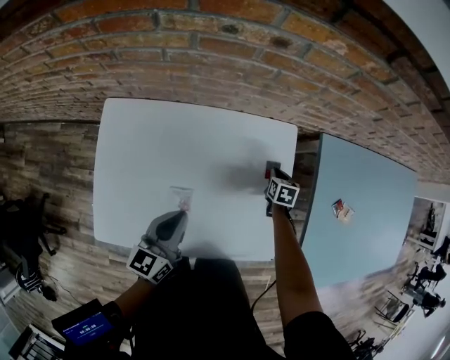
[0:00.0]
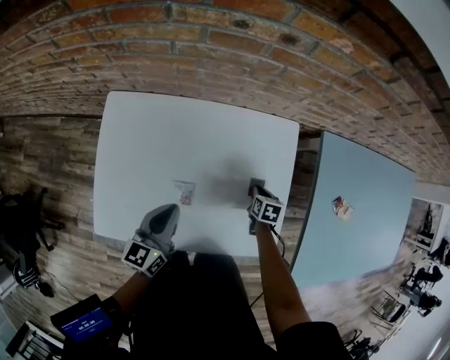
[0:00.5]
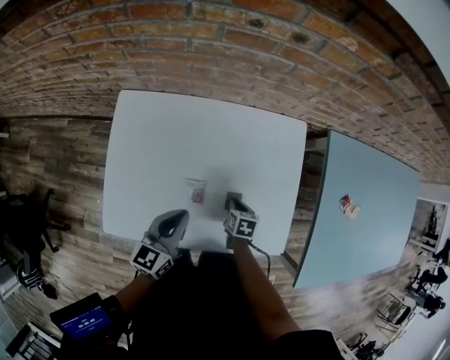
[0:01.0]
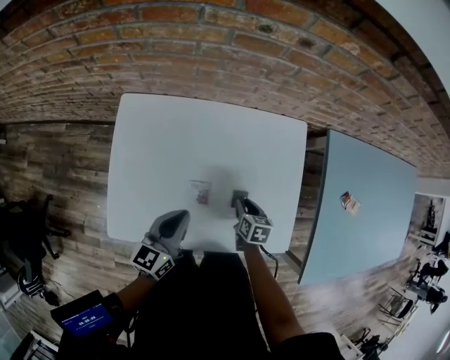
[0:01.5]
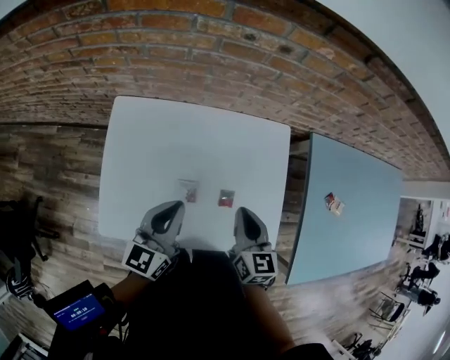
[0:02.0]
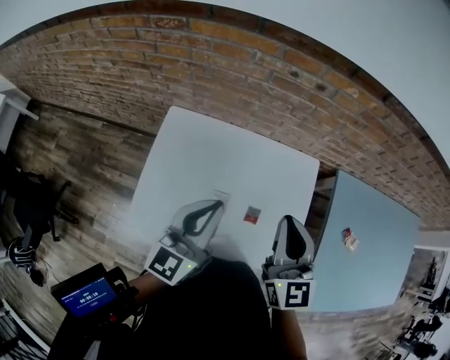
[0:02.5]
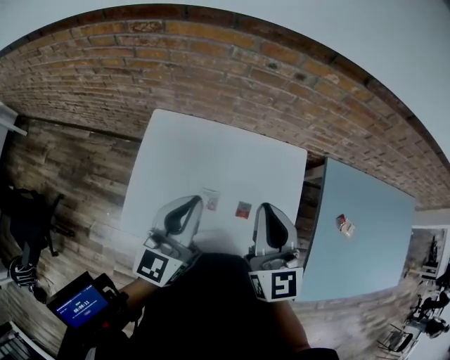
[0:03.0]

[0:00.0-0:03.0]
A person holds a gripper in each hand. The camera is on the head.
0:00.0 to 0:01.5: The right gripper goes some 25 cm backward and to the left. Meanwhile the left gripper heads to the left, covering roughly 5 cm.
0:01.5 to 0:03.0: The left gripper goes approximately 20 cm upward, and swivels approximately 30 degrees, while the right gripper shifts about 40 cm upward, tips its fingers upward by some 50 degrees, and closes up.

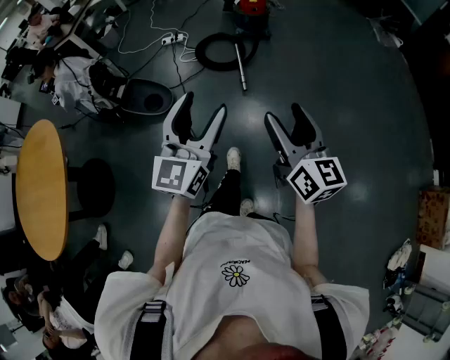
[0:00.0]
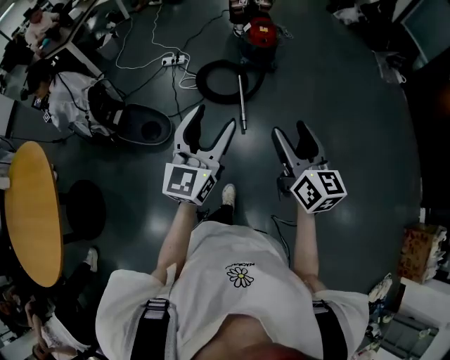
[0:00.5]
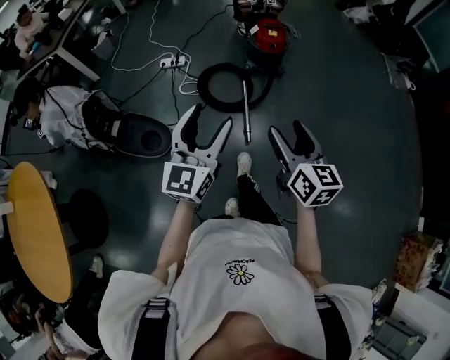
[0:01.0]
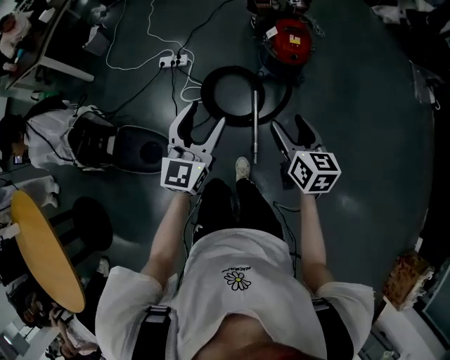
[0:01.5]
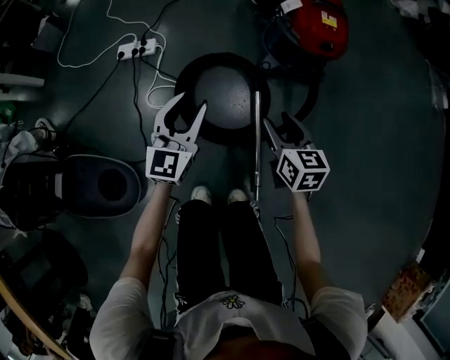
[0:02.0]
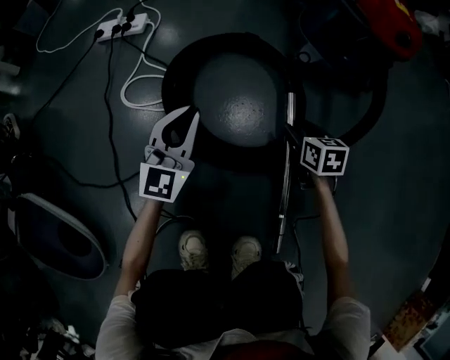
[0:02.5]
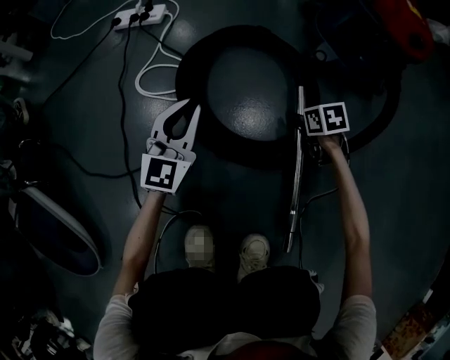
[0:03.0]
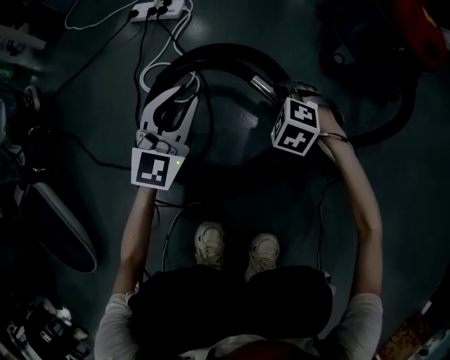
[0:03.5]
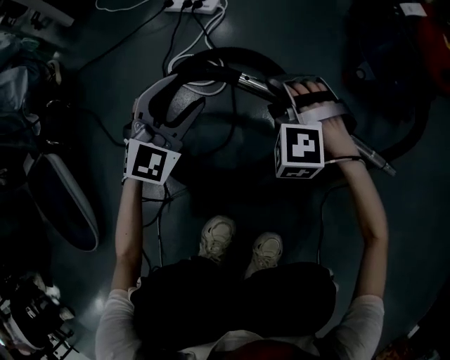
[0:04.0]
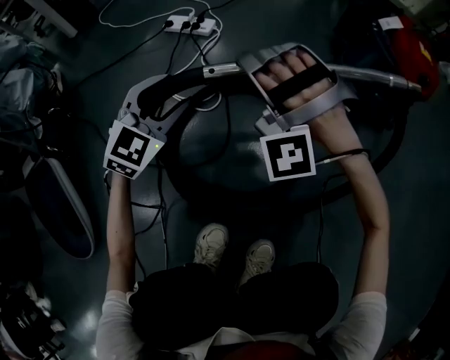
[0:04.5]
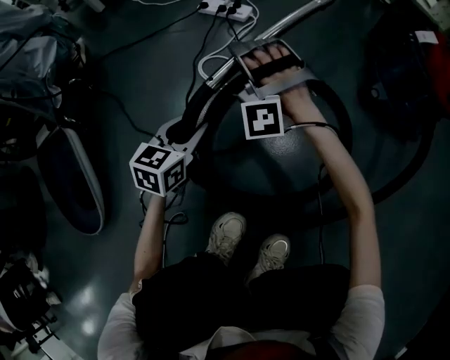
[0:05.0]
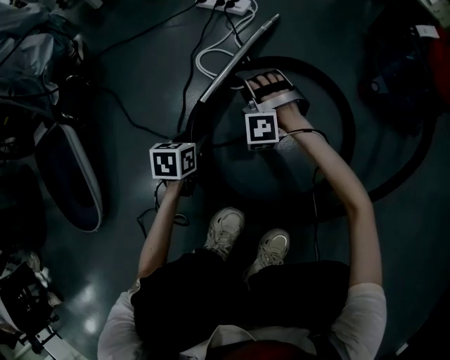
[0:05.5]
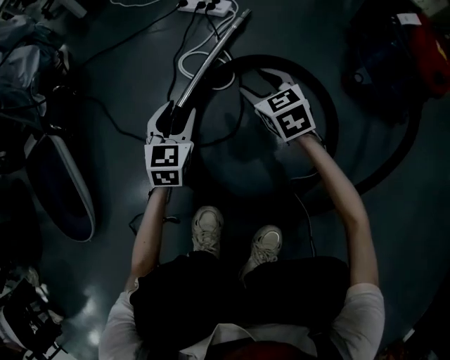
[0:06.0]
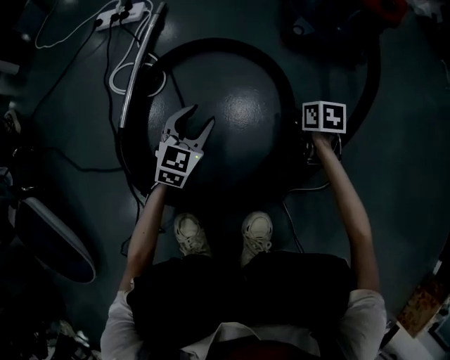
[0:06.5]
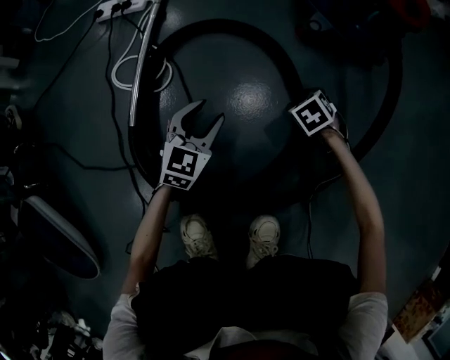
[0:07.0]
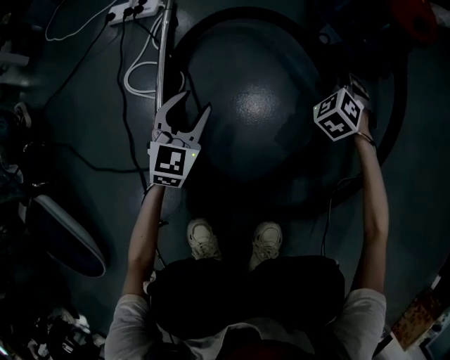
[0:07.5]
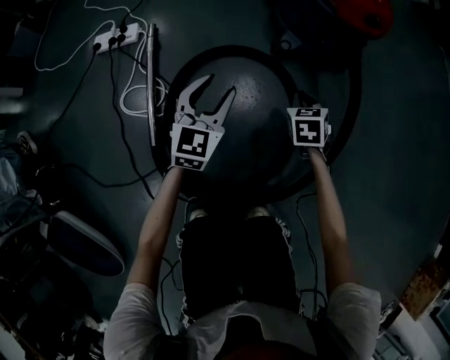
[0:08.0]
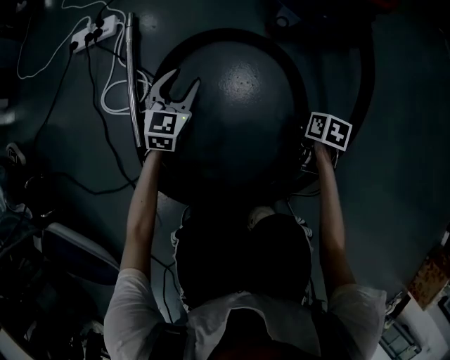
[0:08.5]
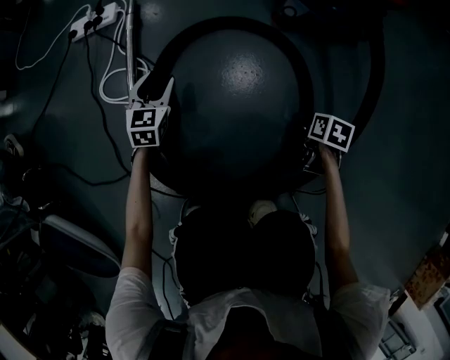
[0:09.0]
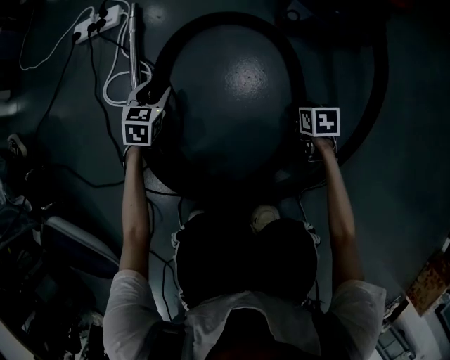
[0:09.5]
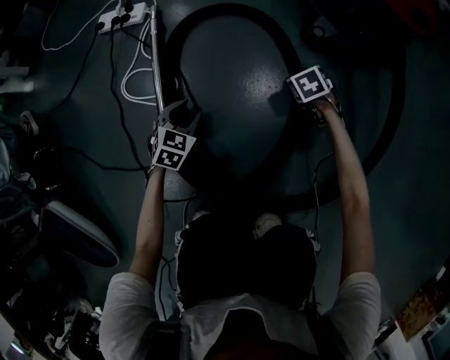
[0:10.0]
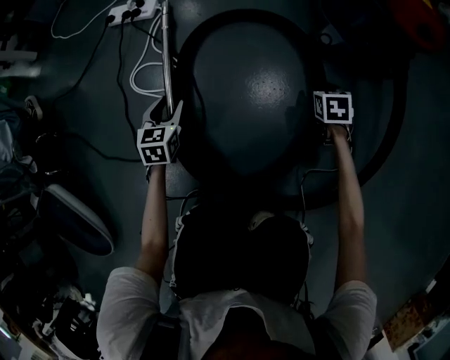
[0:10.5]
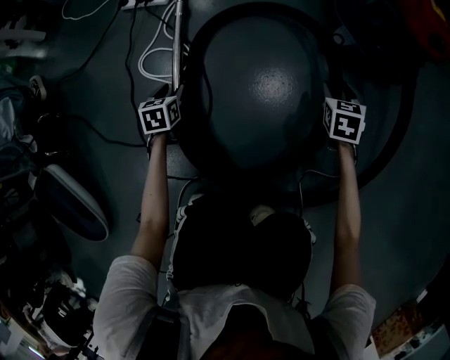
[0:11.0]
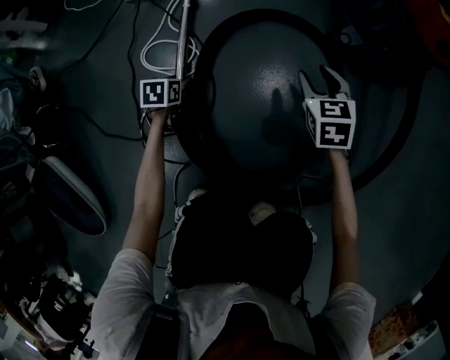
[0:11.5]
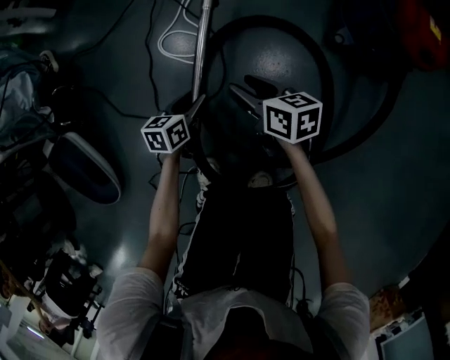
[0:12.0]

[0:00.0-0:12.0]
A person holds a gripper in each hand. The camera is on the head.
0:00.0 to 0:02.0: The two grippers travel together, forward, some 90 cm. The grippers both shift downward by roughly 60 cm. The right gripper points its fingers roughly 30 degrees further downward.
0:02.0 to 0:04.0: The two grippers go roughly 30 cm downward and to the left. The left gripper changes its angle by some 40 degrees, and closes and opens again, while the right gripper twists some 110 degrees counterclockwise, seen from behind.
0:04.0 to 0:06.0: The left gripper heads to the left and downward, covering some 10 cm, and changes its angle by roughly 40 degrees; the right gripper moves up and down over roughly 20 cm, changing direction 2 times, and rotates around the line of its fingers by approximately 60 degrees, clockwise from behind.
0:06.0 to 0:08.0: The right gripper travels downward and back again, approximately 15 cm each way, changes its angle by approximately 50 degrees, and closes up; the left gripper ends up approximately 35 cm from where it was, and turns by approximately 40 degrees.
0:08.0 to 0:10.0: The right gripper moves downward, some 15 cm, rotates some 30 degrees, and opens up. Meanwhile the left gripper moves downward and to the left, some 25 cm, and points its fingers approximately 30 degrees further downward.
0:10.0 to 0:12.0: The right gripper ends up about 40 cm from where it was, and points its fingers some 40 degrees further upward. Meanwhile the left gripper swings up and down, some 15 cm each way, with 2 reversals, and rotates around the line of its fingers by approximately 50 degrees, counterclockwise from behind.

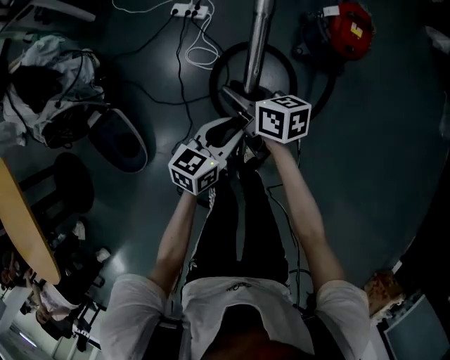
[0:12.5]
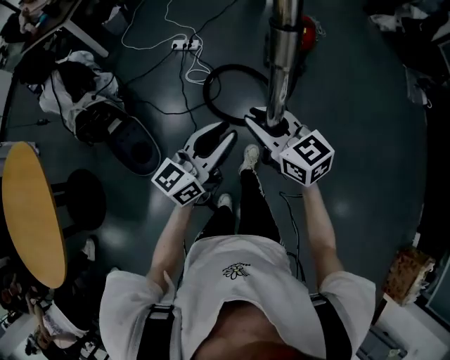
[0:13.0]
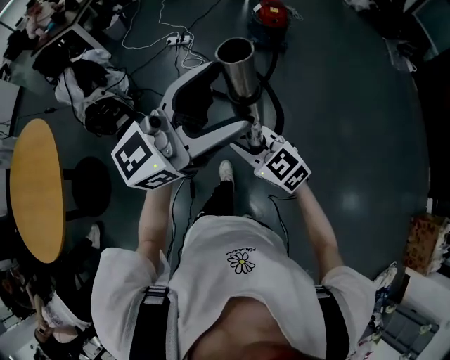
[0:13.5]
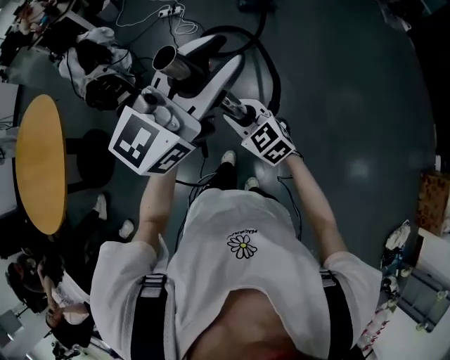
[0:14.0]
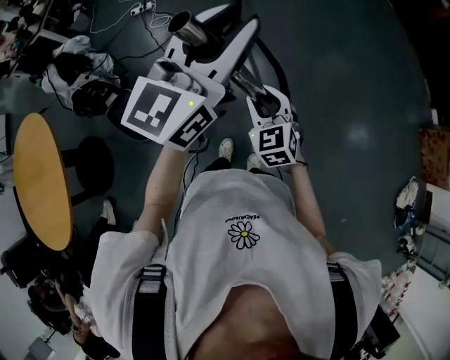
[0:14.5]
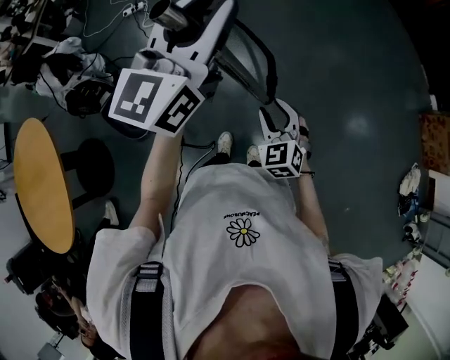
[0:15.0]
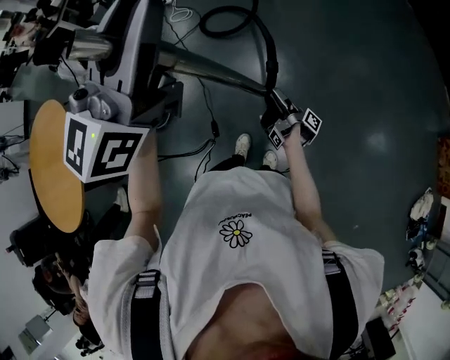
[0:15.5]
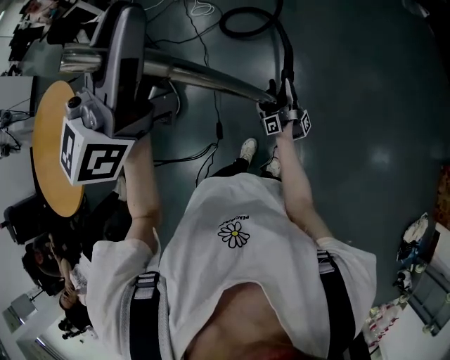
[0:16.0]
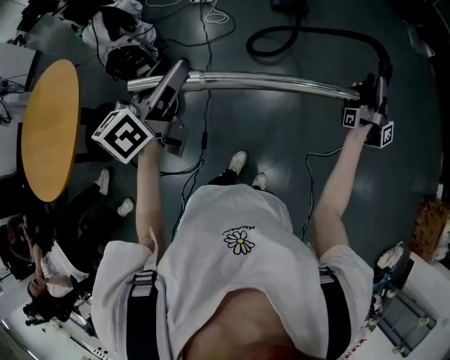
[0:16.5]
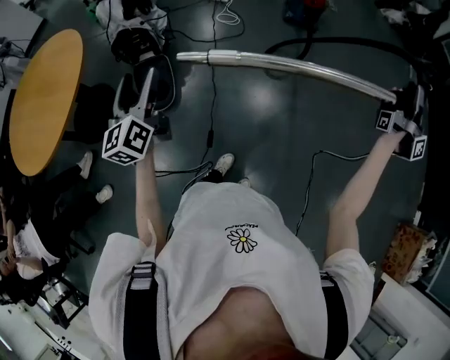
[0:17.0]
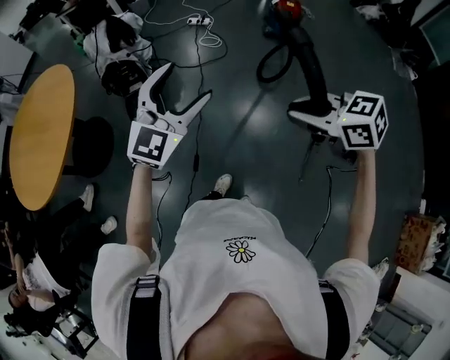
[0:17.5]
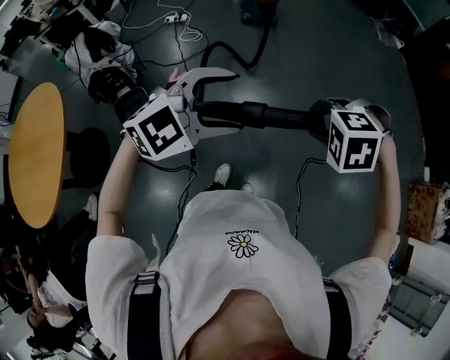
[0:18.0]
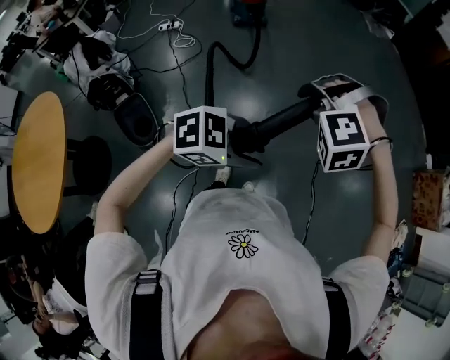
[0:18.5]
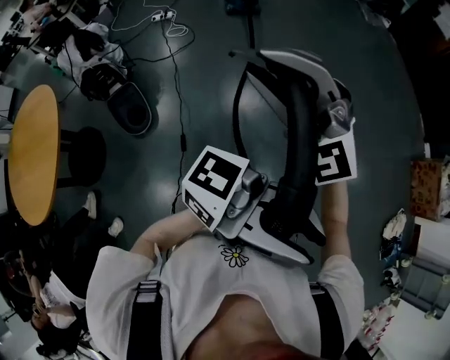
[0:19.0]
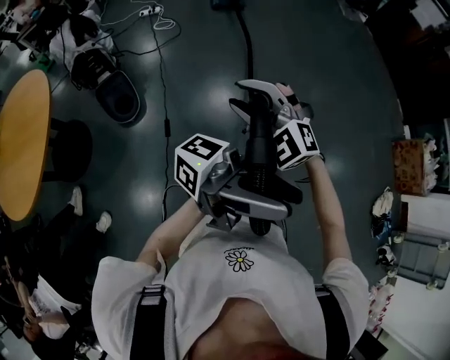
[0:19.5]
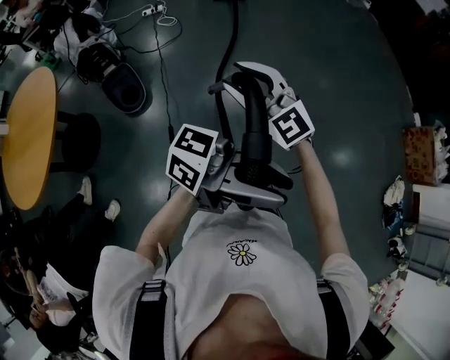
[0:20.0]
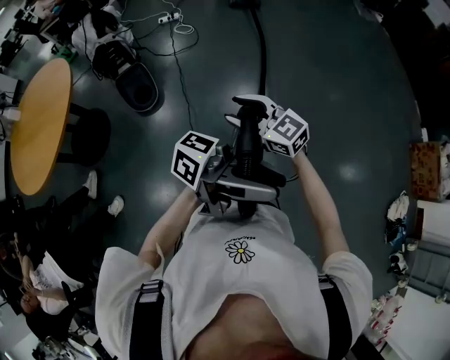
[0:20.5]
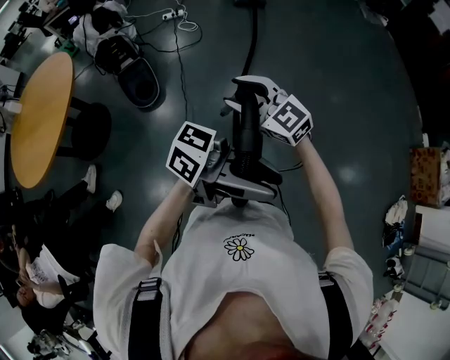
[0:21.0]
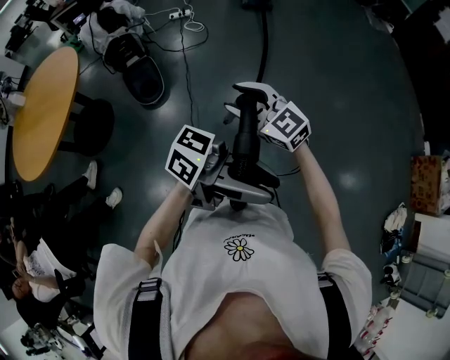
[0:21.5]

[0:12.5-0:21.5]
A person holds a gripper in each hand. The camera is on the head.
0:12.5 to 0:14.5: Both grippers are carried approximately 90 cm. The left gripper tips its fingers upward by roughly 30 degrees, and opens, then closes once more. The right gripper changes its angle by roughly 60 degrees.
0:14.5 to 0:17.0: The left gripper ends up about 40 cm from where it was, changes its angle by some 60 degrees, and opens up, while the right gripper ends up some 40 cm from where it was, and rotates around the line of its fingers by some 90 degrees, clockwise from behind.
0:17.0 to 0:19.5: The left gripper swings up and down, about 20 cm each way, with 2 reversals, points its fingers some 50 degrees further upward, and closes, while the right gripper moves up and down over some 15 cm, changing direction 2 times, and twists roughly 110 degrees counterclockwise, seen from behind.
0:19.5 to 0:21.5: The left gripper is displaced downward by roughly 10 cm, and rotates roughly 30 degrees; the right gripper ends up roughly 10 cm from where it was, and swivels about 40 degrees.

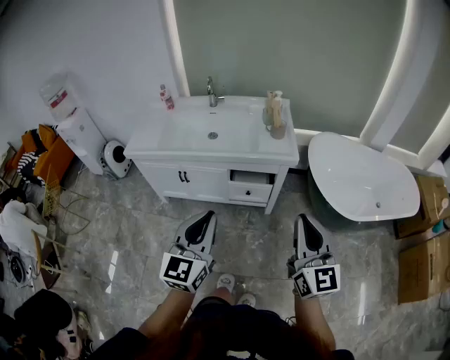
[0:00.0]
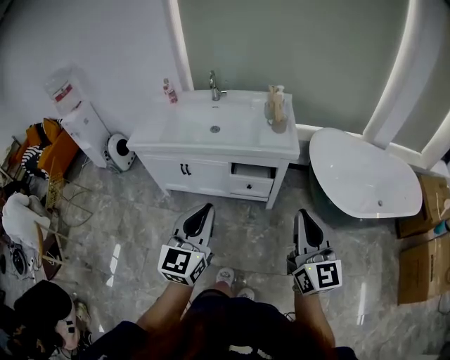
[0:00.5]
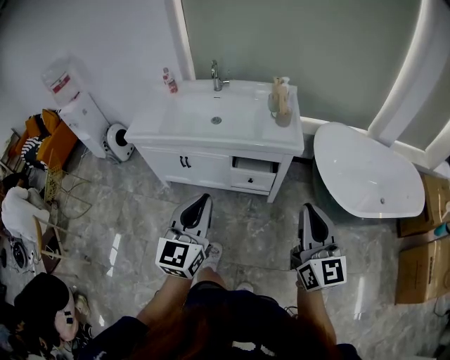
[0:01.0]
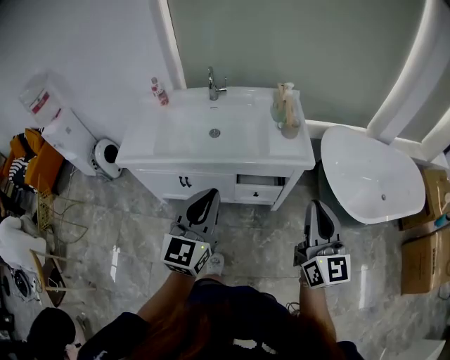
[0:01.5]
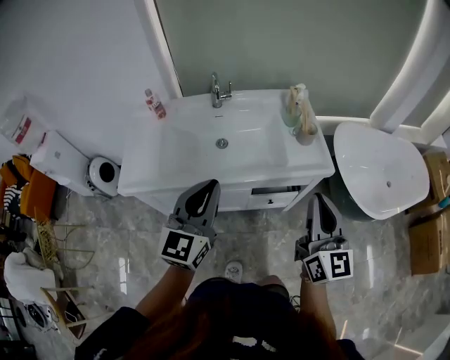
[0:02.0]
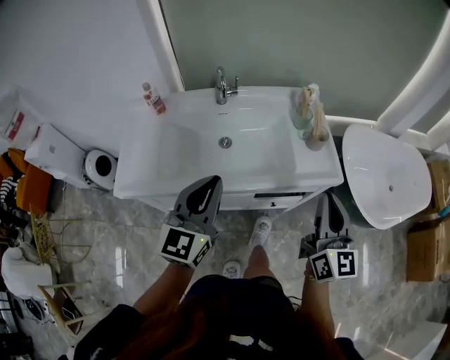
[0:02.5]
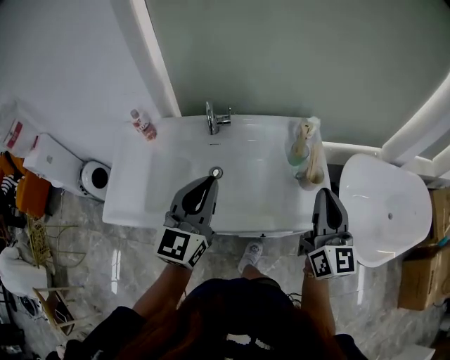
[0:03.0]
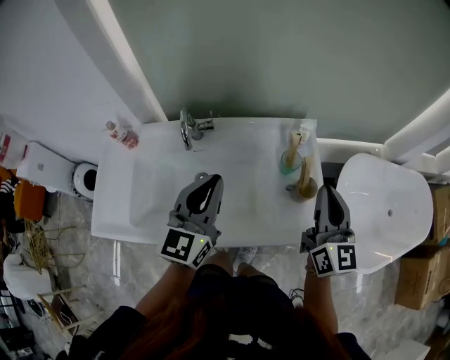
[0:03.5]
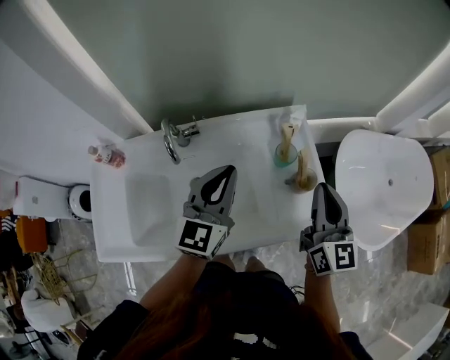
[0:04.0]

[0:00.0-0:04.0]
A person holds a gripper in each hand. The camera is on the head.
0:00.0 to 0:02.0: Both grippers move forward and to the left, some 35 cm.
0:02.0 to 0:04.0: The two grippers travel together, forward, approximately 40 cm.
